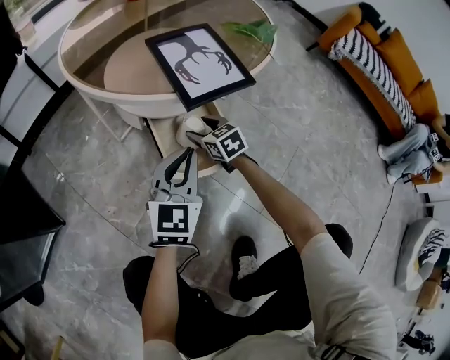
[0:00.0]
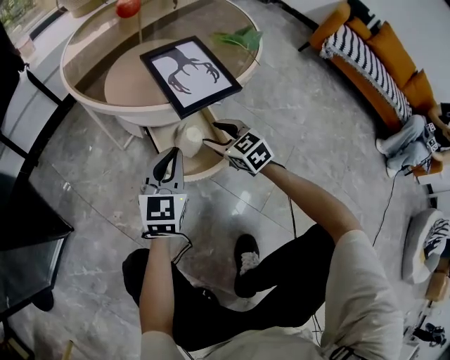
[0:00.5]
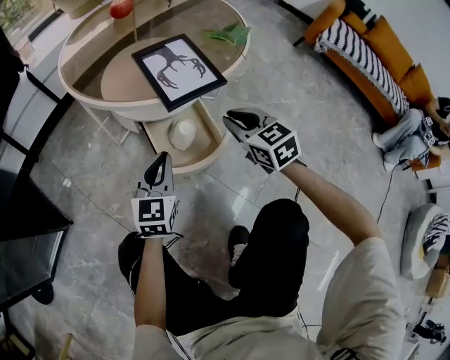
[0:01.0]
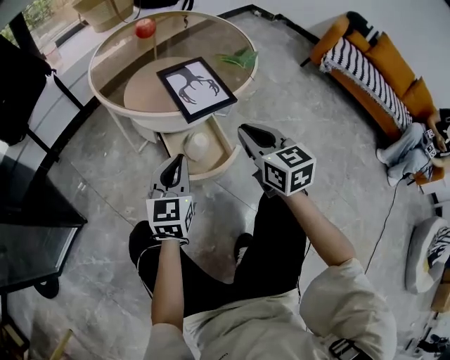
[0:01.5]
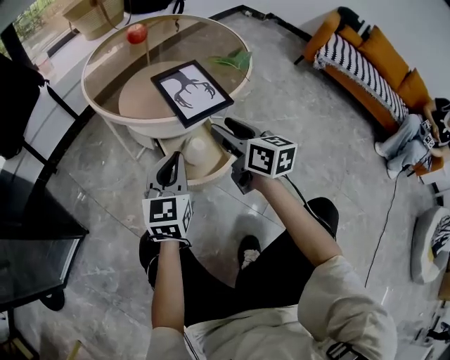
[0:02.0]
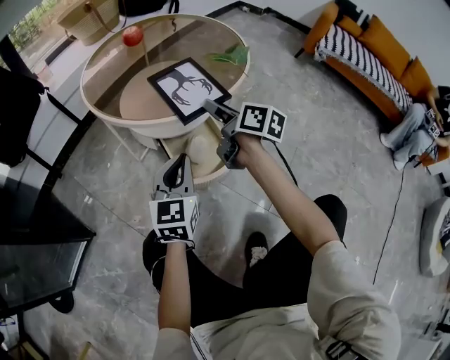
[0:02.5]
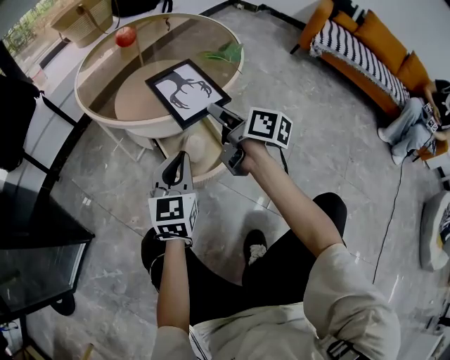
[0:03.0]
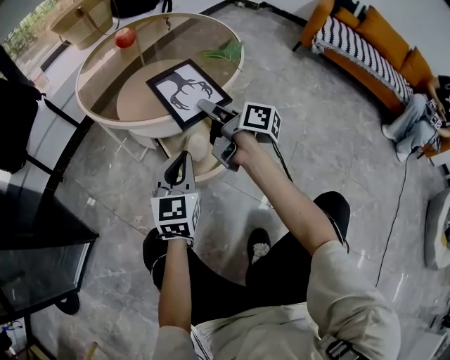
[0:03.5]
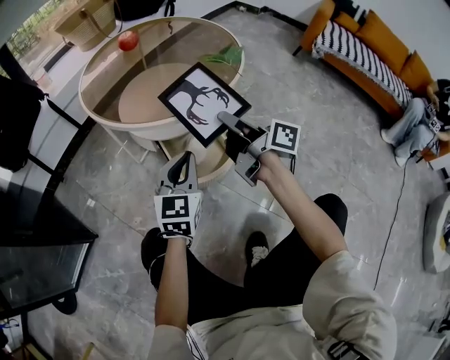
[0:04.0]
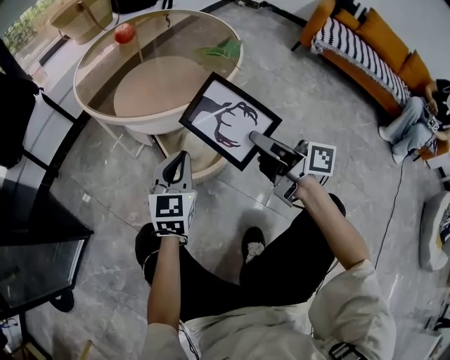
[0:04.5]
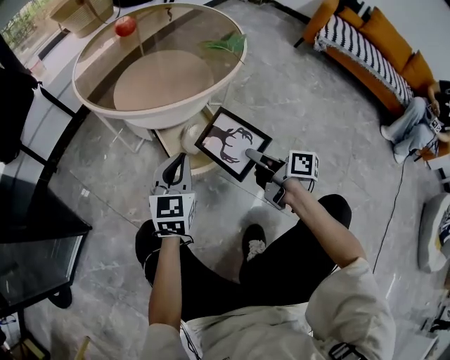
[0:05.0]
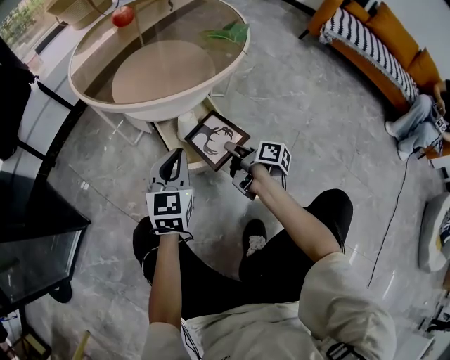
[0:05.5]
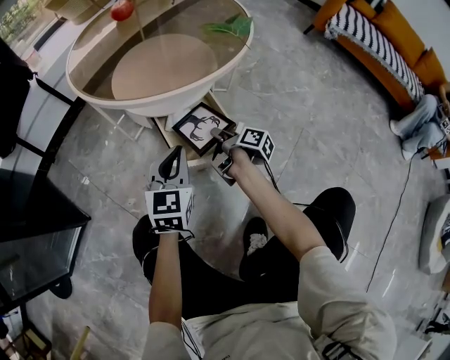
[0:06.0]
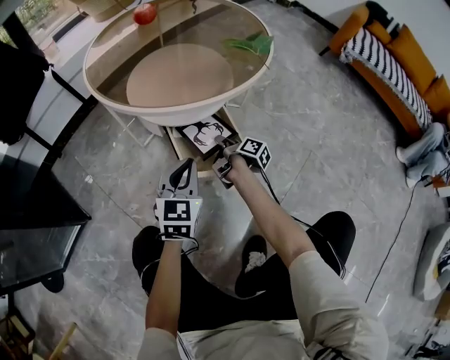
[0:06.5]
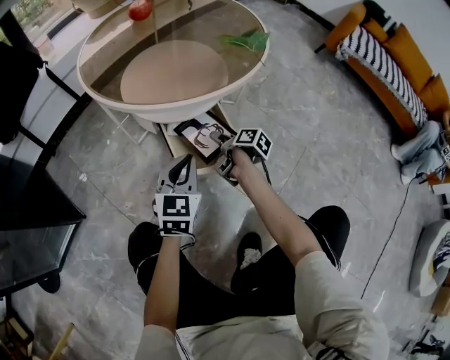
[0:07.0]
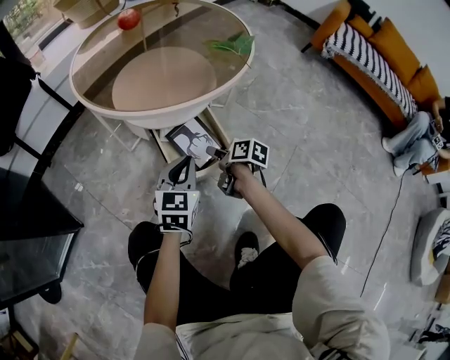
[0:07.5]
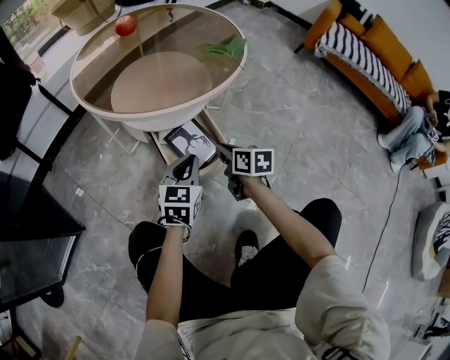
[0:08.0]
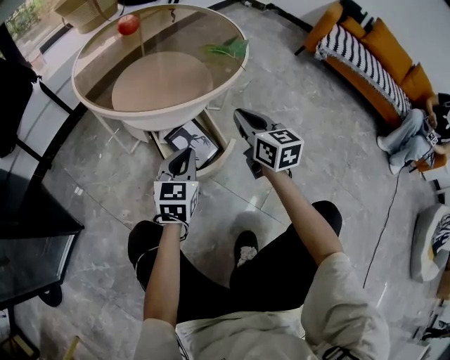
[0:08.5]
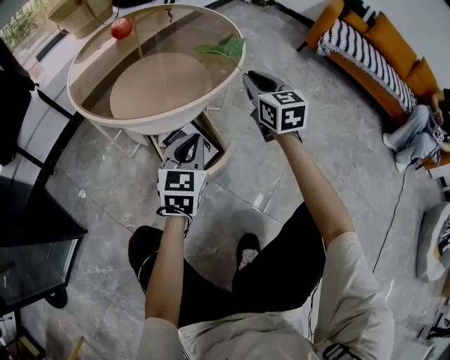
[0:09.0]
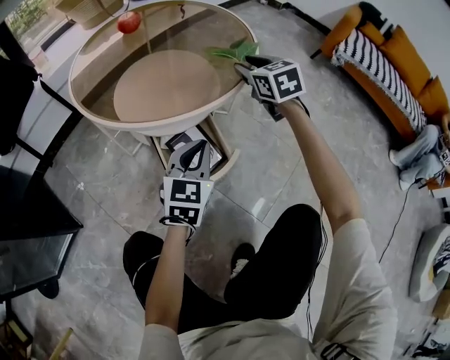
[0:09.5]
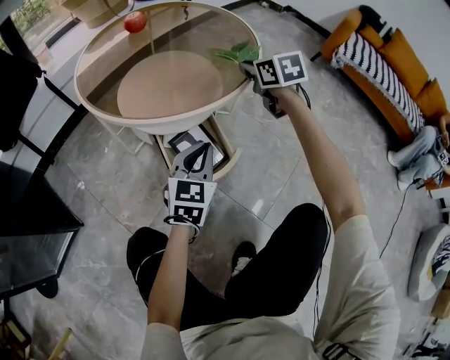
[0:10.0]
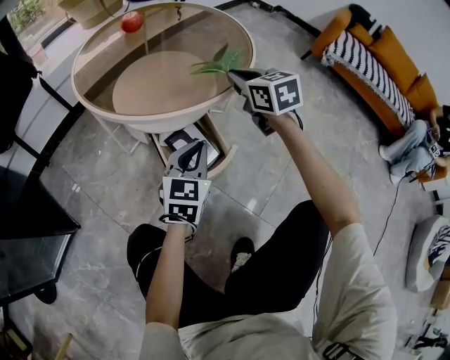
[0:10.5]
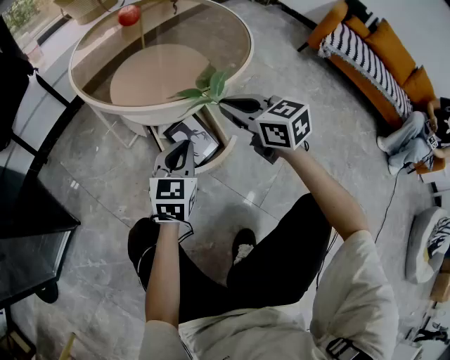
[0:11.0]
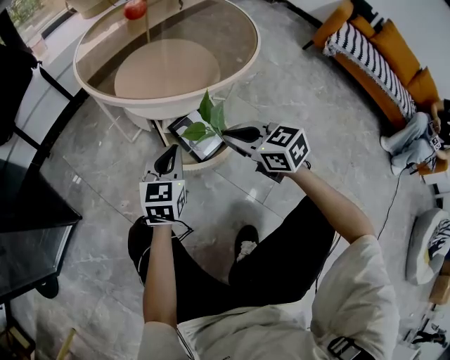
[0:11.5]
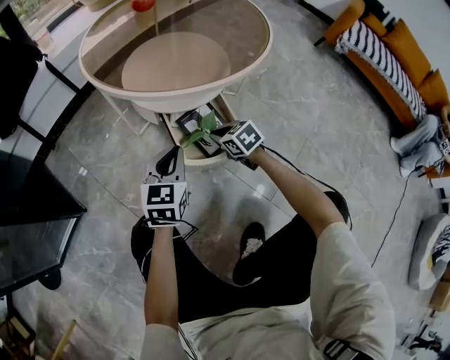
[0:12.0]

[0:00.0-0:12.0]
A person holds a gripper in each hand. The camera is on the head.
0:00.0 to 0:02.0: The left gripper shifts about 10 cm upward. Meanwhile the right gripper shifts roughly 30 cm upward, changes its angle by roughly 40 degrees, and closes and opens again.
0:02.0 to 0:04.0: The right gripper rotates about 40 degrees, and closes.
0:04.0 to 0:06.0: The left gripper moves downward, about 5 cm, while the right gripper heads downward, covering approximately 25 cm, and swivels approximately 40 degrees.
0:06.0 to 0:08.0: The right gripper travels upward by about 5 cm, twists about 50 degrees counterclockwise, seen from behind, and opens and closes again. The left gripper ends up roughly 5 cm from where it was.
0:08.0 to 0:10.0: The left gripper shifts some 5 cm upward; the right gripper travels forward and upward by approximately 30 cm, and turns by approximately 30 degrees.
0:10.0 to 0:12.0: The left gripper goes roughly 15 cm to the left and downward. Meanwhile the right gripper moves downward, backward and to the left, roughly 35 cm, and changes its angle by about 30 degrees.

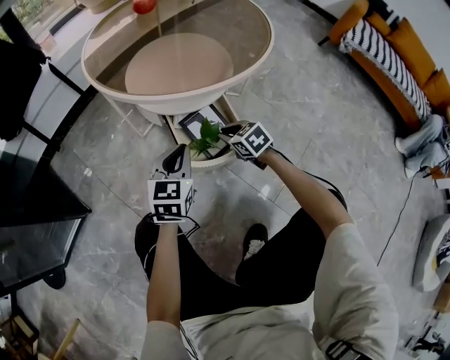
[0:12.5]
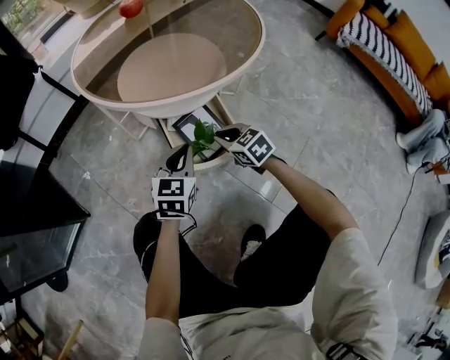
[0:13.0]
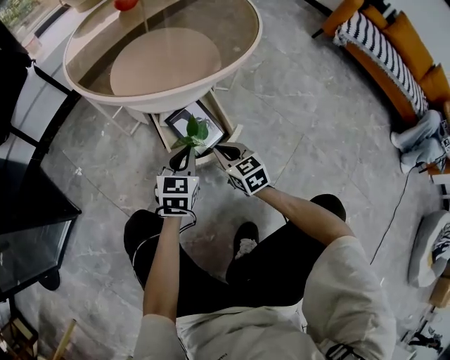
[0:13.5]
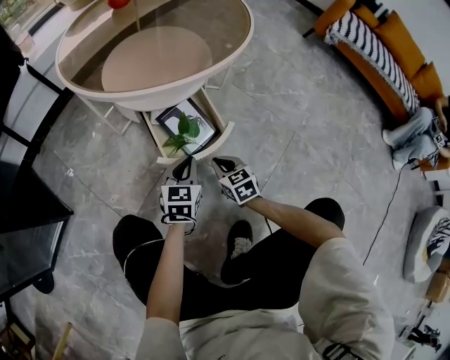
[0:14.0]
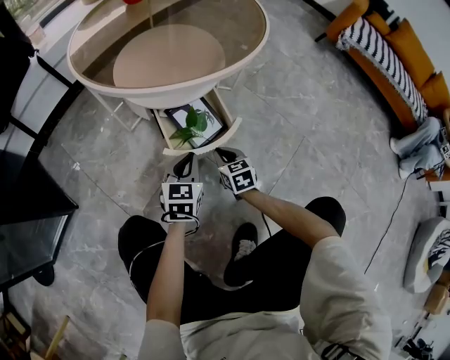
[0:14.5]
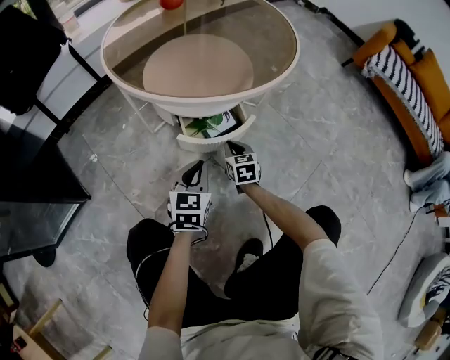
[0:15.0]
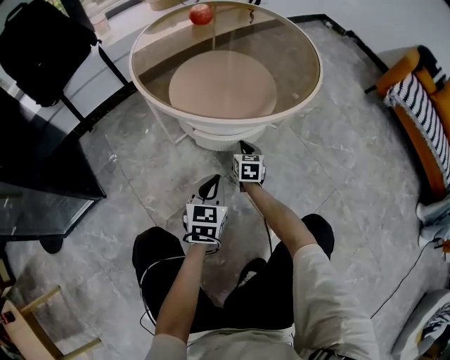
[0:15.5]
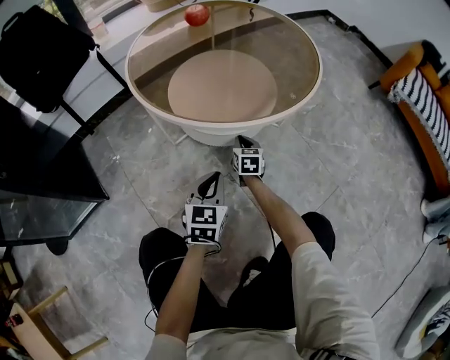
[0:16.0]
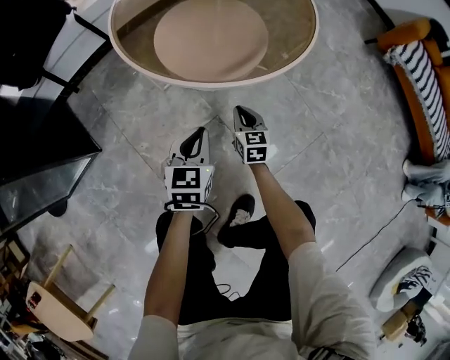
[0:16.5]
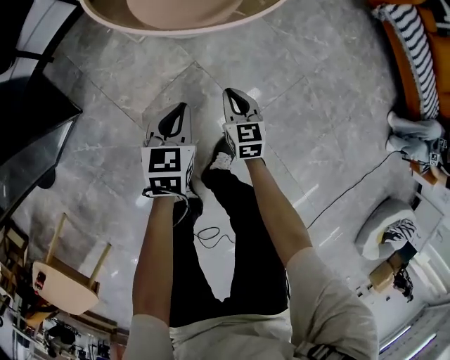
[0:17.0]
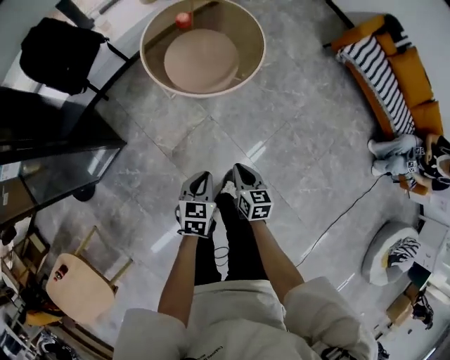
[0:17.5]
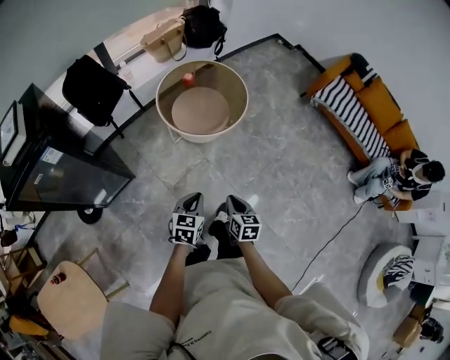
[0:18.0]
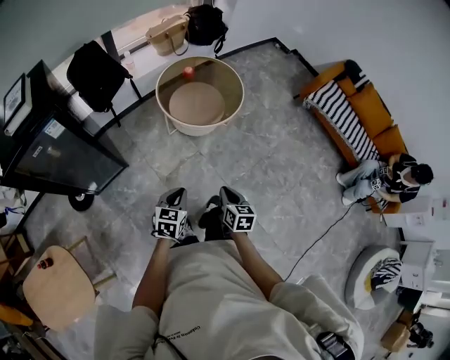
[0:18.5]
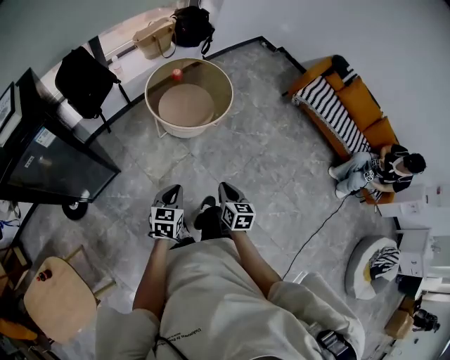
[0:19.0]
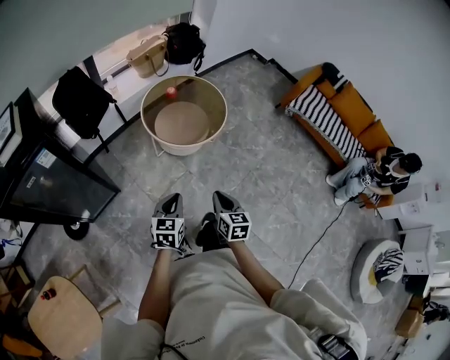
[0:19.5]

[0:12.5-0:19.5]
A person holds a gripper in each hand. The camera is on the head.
0:12.5 to 0:14.5: The right gripper is displaced backward and downward by approximately 10 cm, and turns by some 20 degrees; the left gripper shifts about 10 cm downward and to the right.
0:14.5 to 0:16.0: The left gripper goes about 5 cm upward. Meanwhile the right gripper travels forward by some 15 cm.
0:16.0 to 0:17.5: Both grippers move upward and backward, roughly 50 cm.
0:17.5 to 0:19.5: Both grippers move upward, about 25 cm.

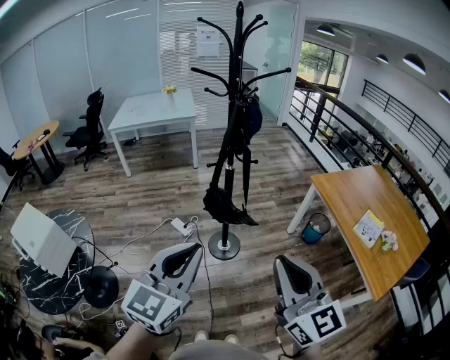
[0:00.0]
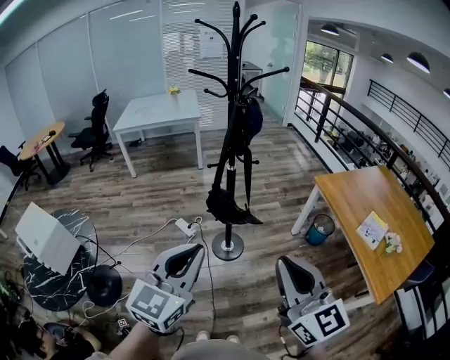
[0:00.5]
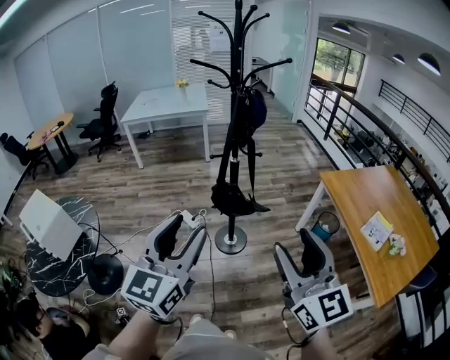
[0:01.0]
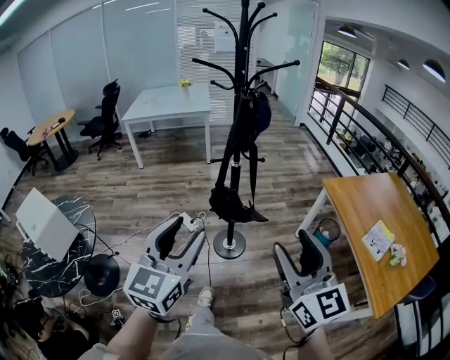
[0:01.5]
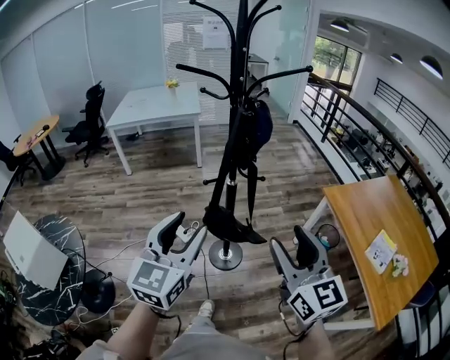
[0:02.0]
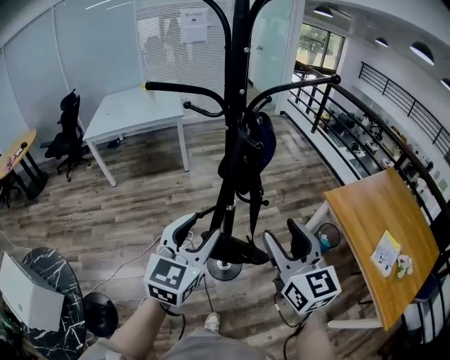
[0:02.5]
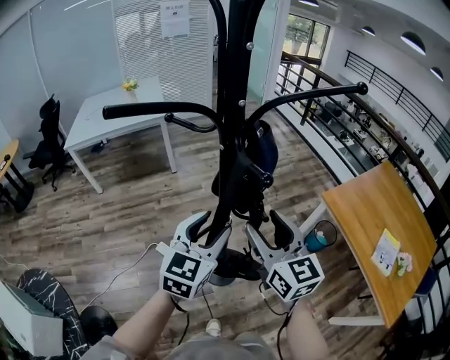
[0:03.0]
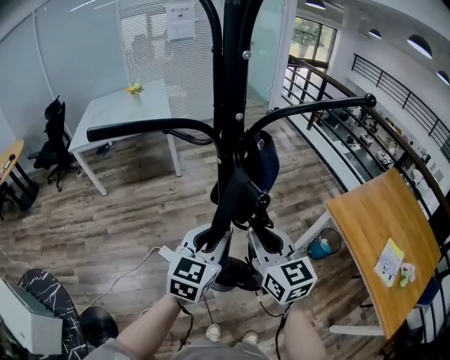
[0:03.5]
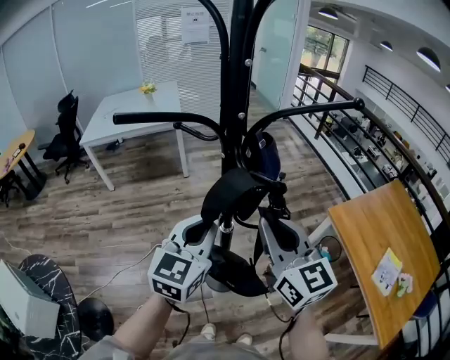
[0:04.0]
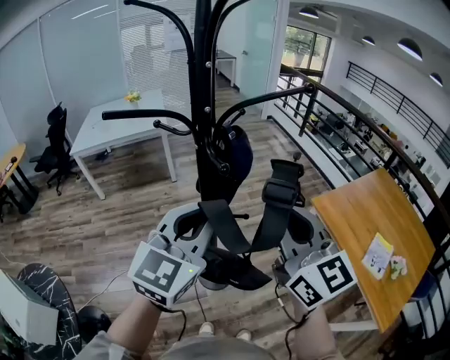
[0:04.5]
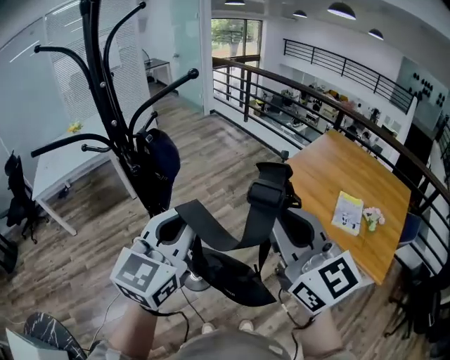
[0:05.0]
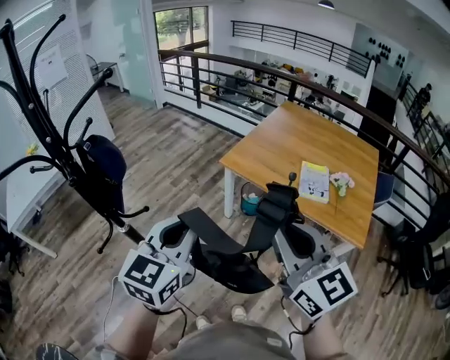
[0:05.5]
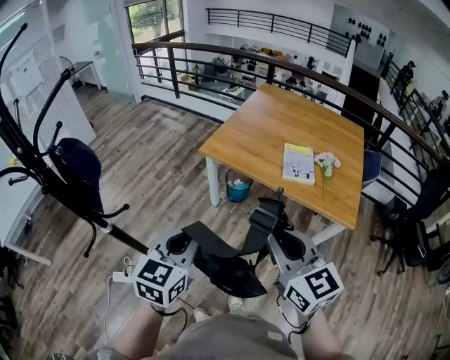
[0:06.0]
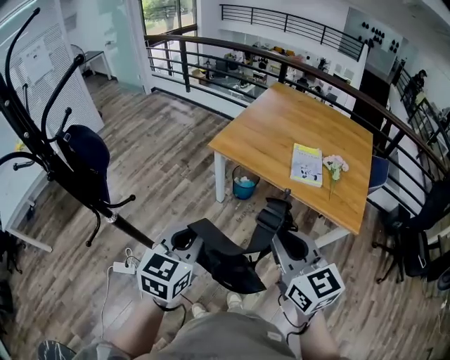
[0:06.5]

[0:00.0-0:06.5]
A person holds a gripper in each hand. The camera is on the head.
0:00.0 to 0:02.0: The grippers both shift forward by roughly 20 cm. The left gripper opens up; the right gripper opens its fingers.
0:02.0 to 0:04.5: The left gripper travels forward, to the right and upward by about 20 cm, swivels approximately 20 degrees, and closes up; the right gripper shifts approximately 15 cm forward and upward, and closes up.
0:04.5 to 0:06.5: The left gripper moves roughly 30 cm, and rotates about 40 degrees; the right gripper shifts by some 35 cm, and rotates some 40 degrees.

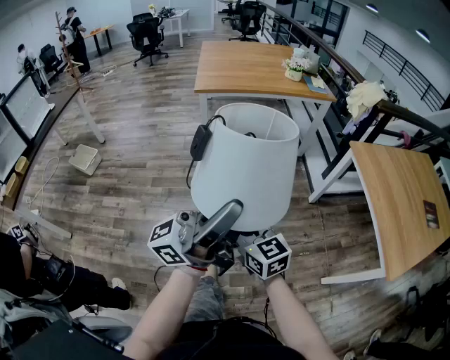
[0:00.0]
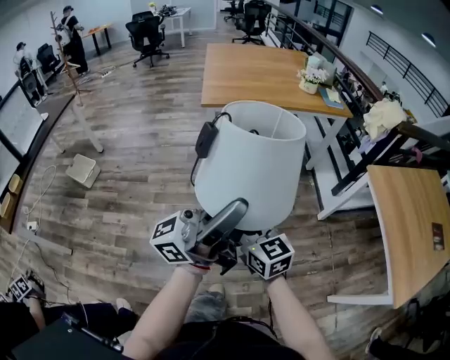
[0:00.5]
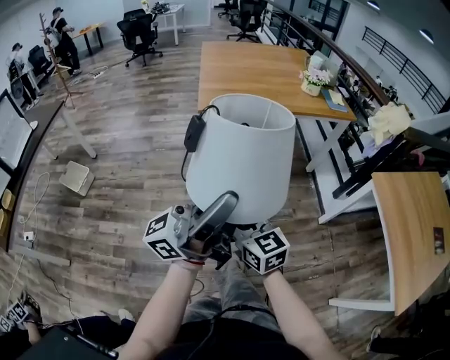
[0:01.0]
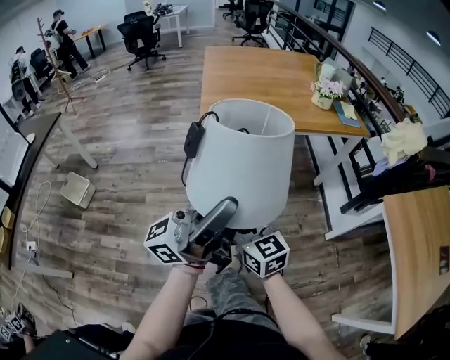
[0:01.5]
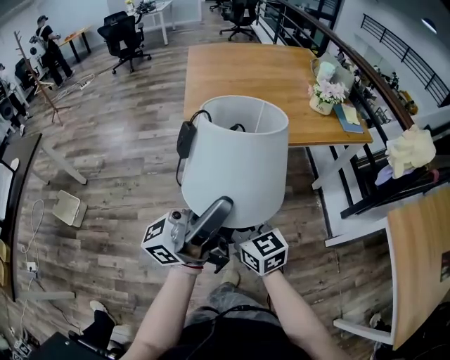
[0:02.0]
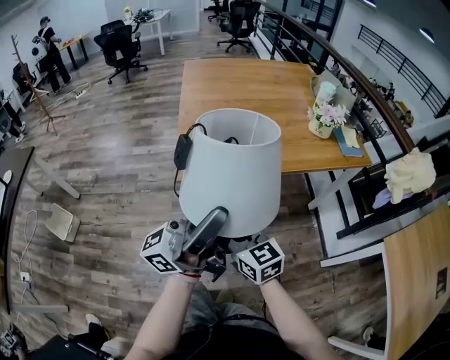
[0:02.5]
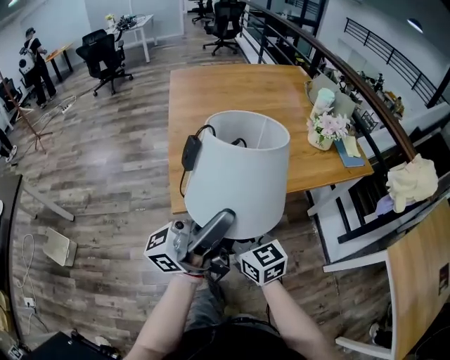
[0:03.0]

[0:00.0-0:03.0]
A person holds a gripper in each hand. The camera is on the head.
0:00.0 to 0:01.5: The two grippers go about 40 cm forward and to the left.
0:01.5 to 0:03.0: The two grippers go approximately 35 cm forward.
